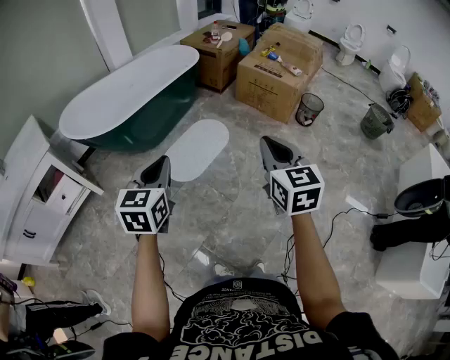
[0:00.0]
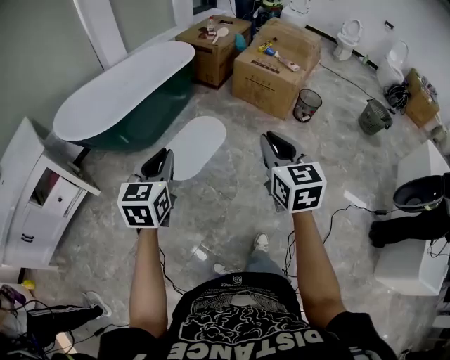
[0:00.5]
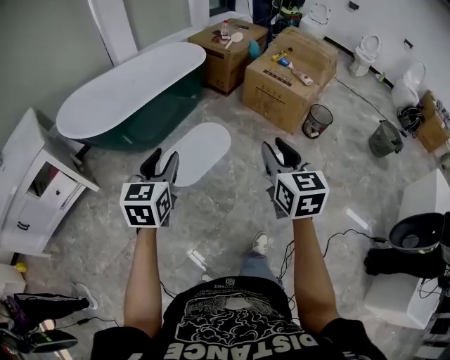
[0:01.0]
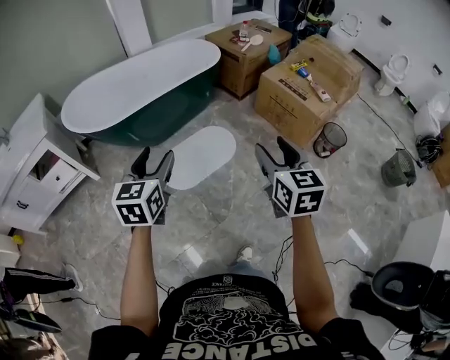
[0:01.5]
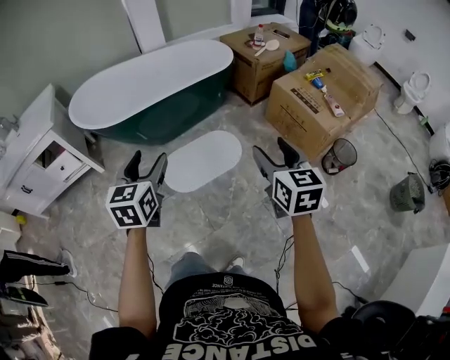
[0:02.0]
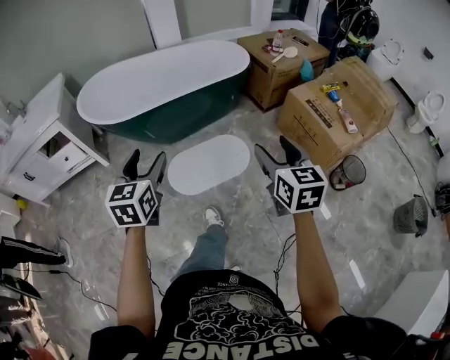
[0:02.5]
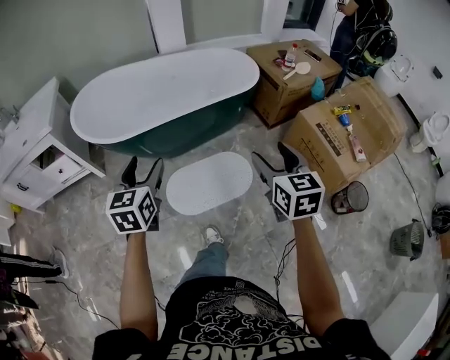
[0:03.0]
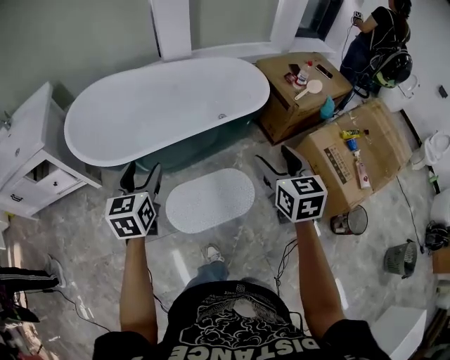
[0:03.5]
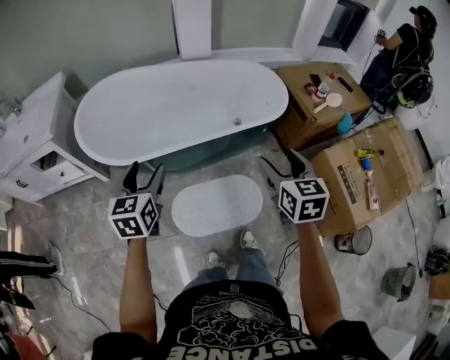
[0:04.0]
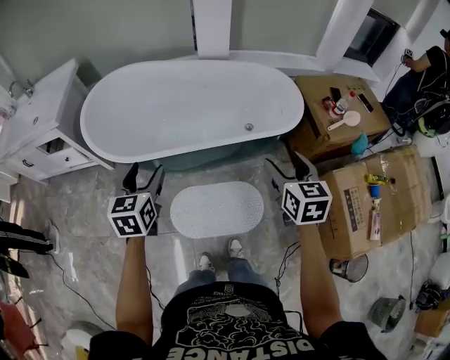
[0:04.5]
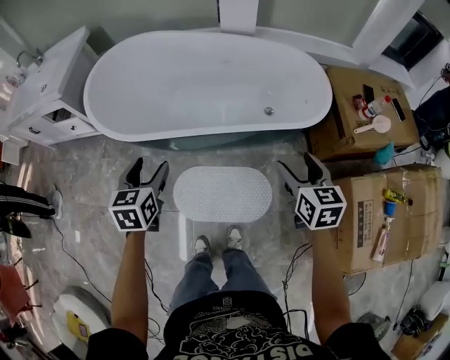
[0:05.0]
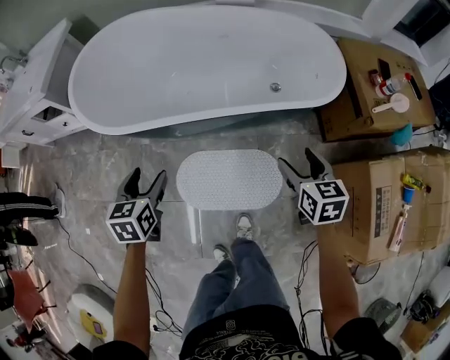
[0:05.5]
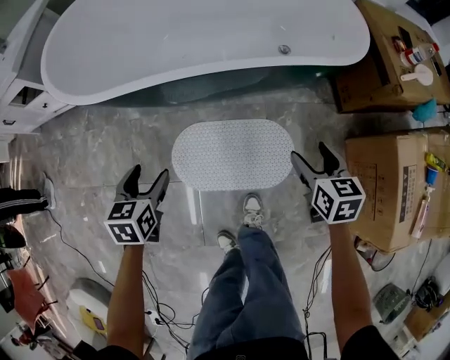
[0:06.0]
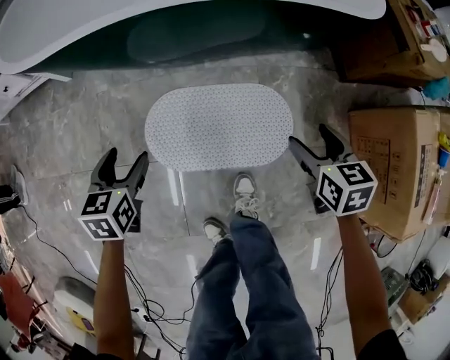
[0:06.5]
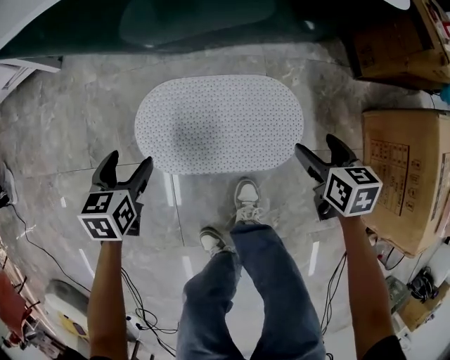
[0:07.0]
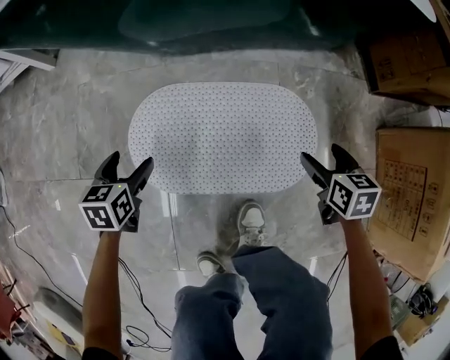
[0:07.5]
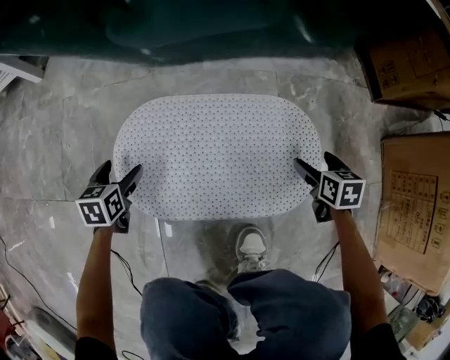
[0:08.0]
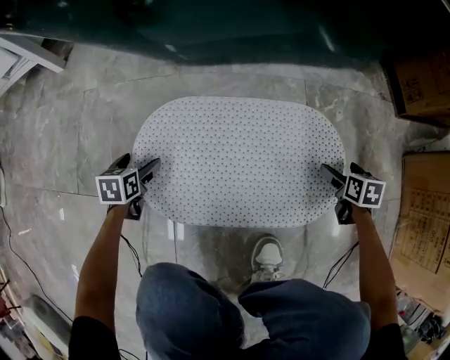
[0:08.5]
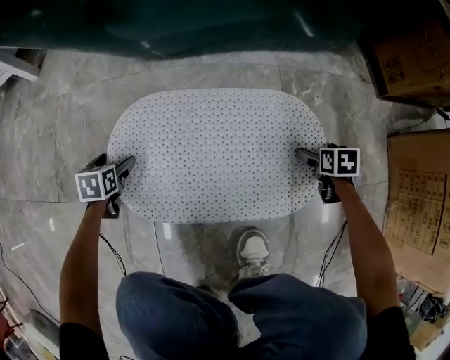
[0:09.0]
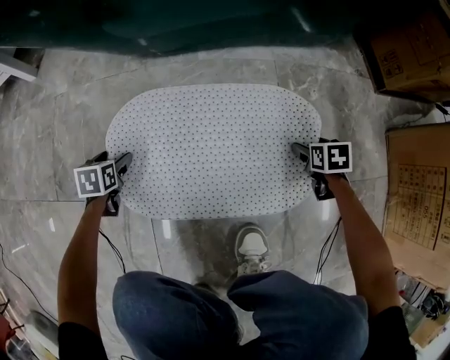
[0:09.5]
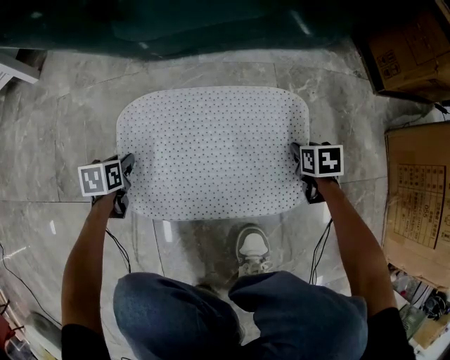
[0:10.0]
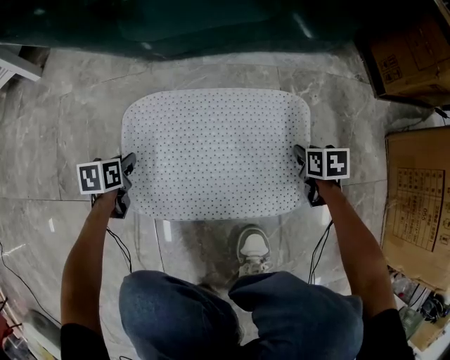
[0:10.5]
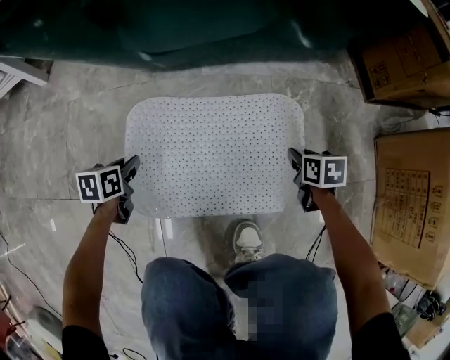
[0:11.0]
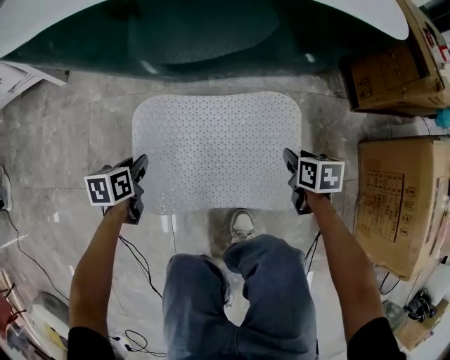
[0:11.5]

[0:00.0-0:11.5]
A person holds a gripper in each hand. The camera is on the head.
0:00.0 to 0:02.0: The left gripper shifts by roughly 25 cm, rotates roughly 30 degrees, and opens; the right gripper moves about 35 cm, rotates some 20 degrees, and opens its fingers.
0:02.0 to 0:04.0: Both grippers travel together forward, approximately 40 cm.
0:04.0 to 0:06.0: The grippers both shift downward by about 35 cm. The right gripper rotates some 20 degrees. The left gripper turns by about 30 degrees.
0:06.0 to 0:07.5: The grippers both shift downward by approximately 40 cm.
0:07.5 to 0:09.5: Both grippers move downward, roughly 20 cm.
0:09.5 to 0:11.5: The two grippers go some 25 cm upward. The right gripper closes up, while the left gripper closes.

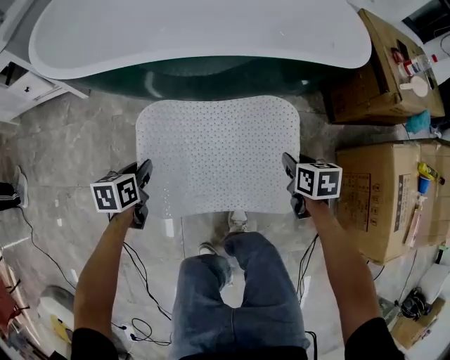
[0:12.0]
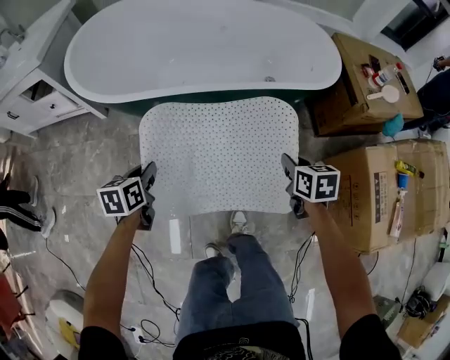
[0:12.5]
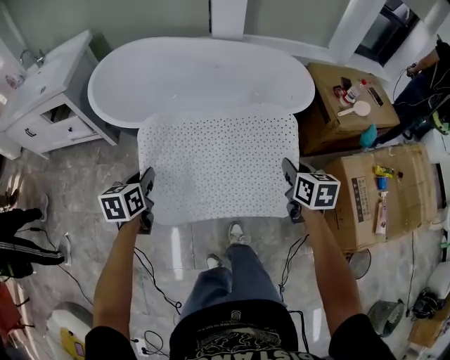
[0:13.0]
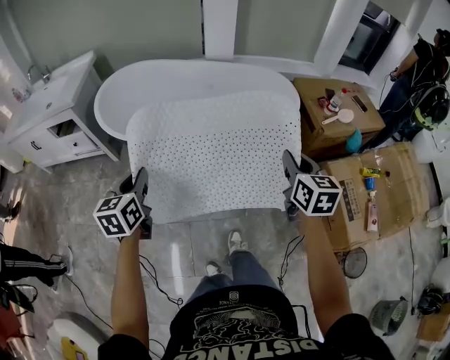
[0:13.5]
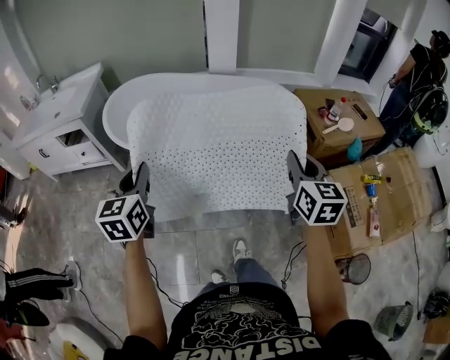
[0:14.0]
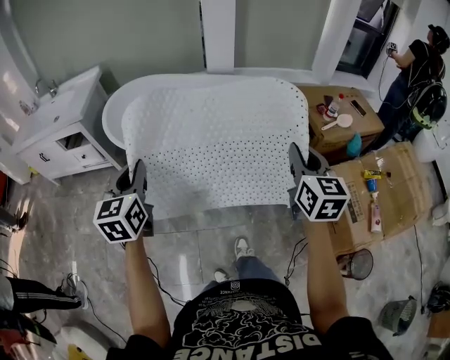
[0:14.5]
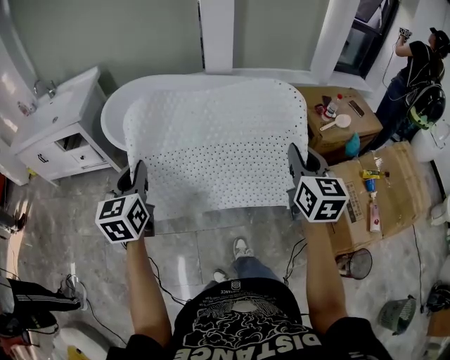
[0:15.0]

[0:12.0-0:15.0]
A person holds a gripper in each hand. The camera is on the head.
0:12.0 to 0:13.5: Both grippers travel together upward, some 50 cm. The left gripper swivels roughly 30 degrees, while the right gripper tilts its fingers approximately 30 degrees upward.
0:13.5 to 0:15.0: Both grippers move upward, some 10 cm.

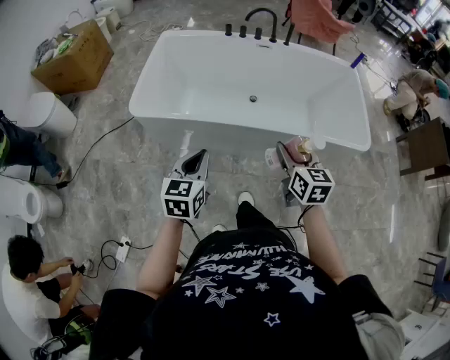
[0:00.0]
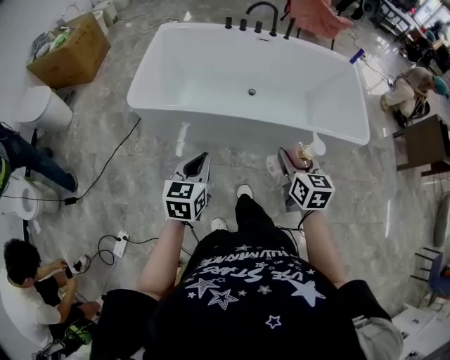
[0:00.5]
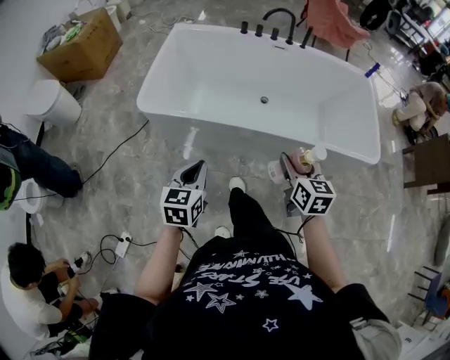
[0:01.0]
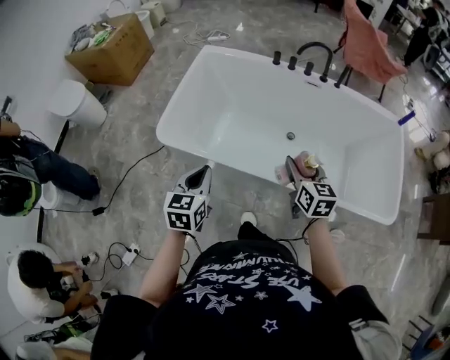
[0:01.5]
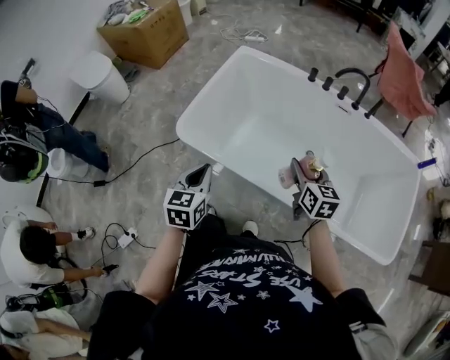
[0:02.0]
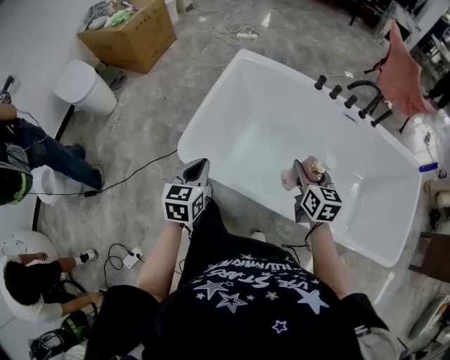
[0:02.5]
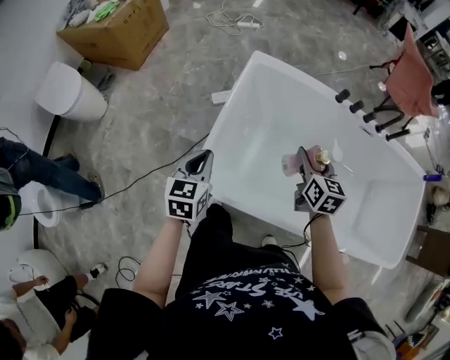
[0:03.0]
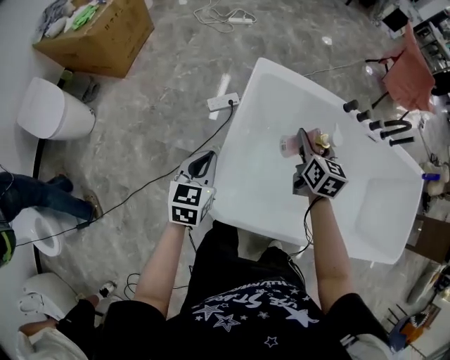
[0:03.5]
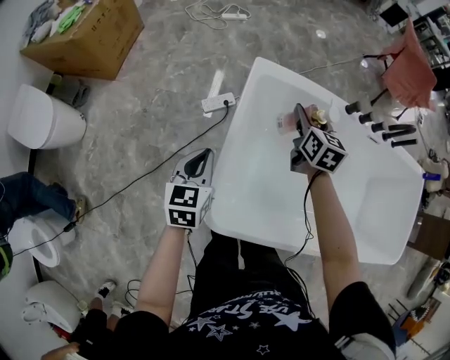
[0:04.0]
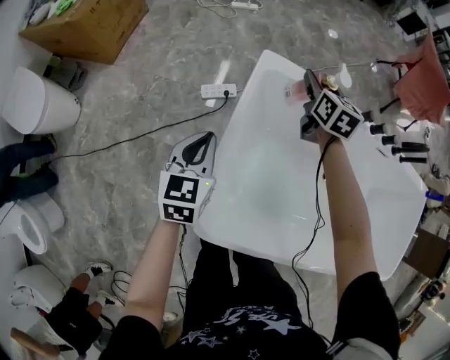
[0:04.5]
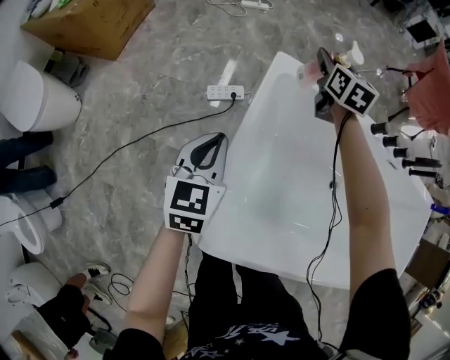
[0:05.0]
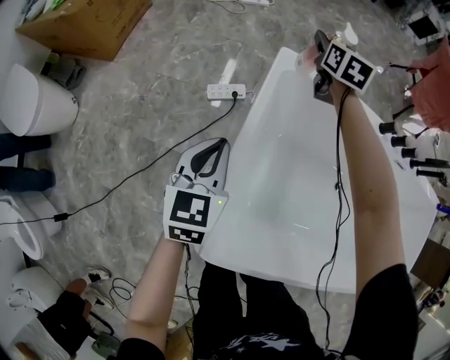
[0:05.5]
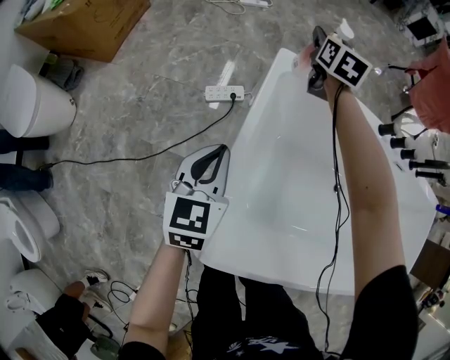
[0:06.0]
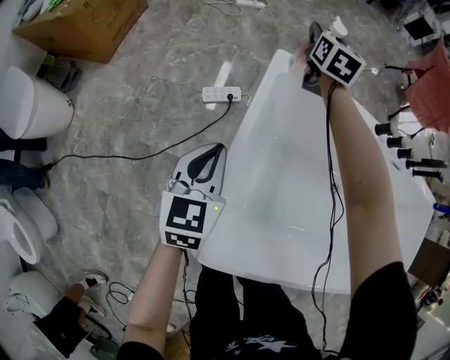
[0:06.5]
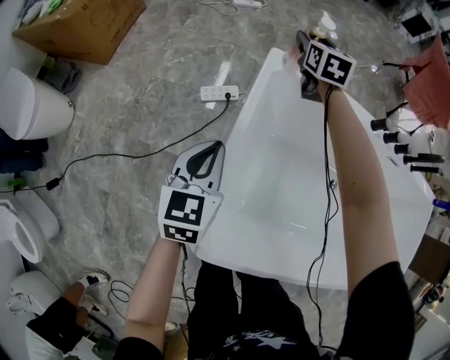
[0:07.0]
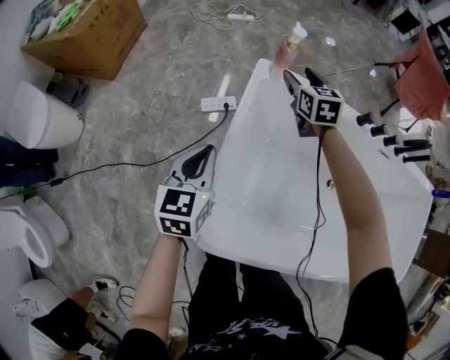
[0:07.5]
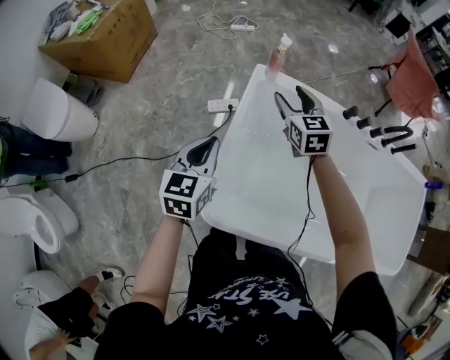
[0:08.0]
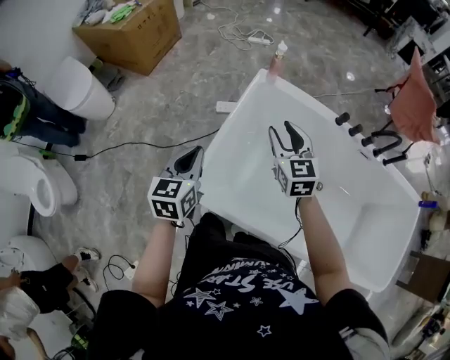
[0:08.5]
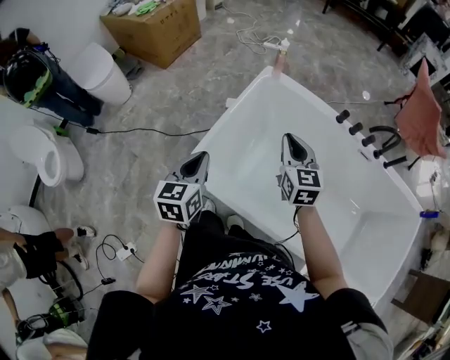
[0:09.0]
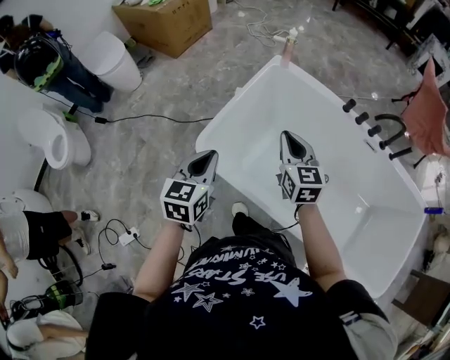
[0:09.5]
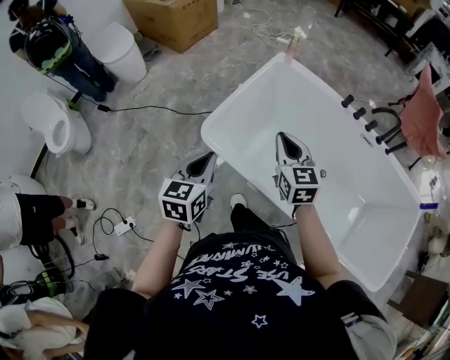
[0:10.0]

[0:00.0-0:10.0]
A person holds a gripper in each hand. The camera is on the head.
0:00.0 to 0:02.0: The left gripper heads forward and to the left, covering some 25 cm, and turns by roughly 20 degrees. Meanwhile the right gripper goes some 35 cm forward.
0:02.0 to 0:04.0: The pair of grippers is taken forward and to the left, roughly 60 cm. The right gripper swivels roughly 20 degrees.
0:04.0 to 0:06.0: The left gripper is displaced downward and forward by approximately 10 cm. Meanwhile the right gripper moves forward, about 25 cm.
0:06.0 to 0:08.0: The right gripper travels backward and upward by some 30 cm, and swivels approximately 20 degrees, while the left gripper is displaced upward and backward by approximately 20 cm.
0:08.0 to 0:10.0: The two grippers travel together, backward, roughly 40 cm. The left gripper turns by approximately 20 degrees; the right gripper closes.

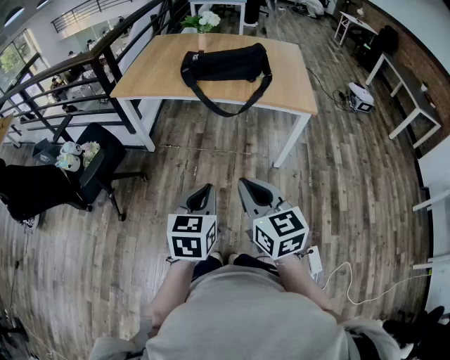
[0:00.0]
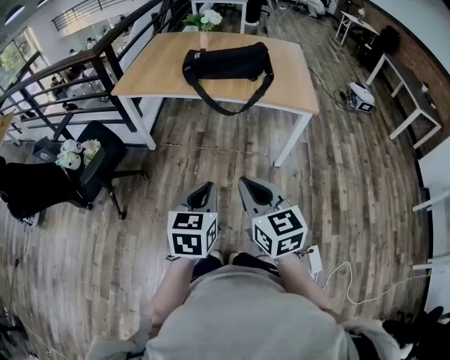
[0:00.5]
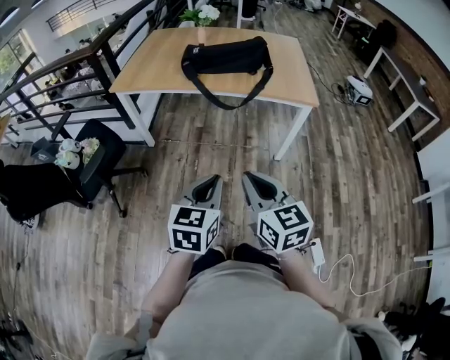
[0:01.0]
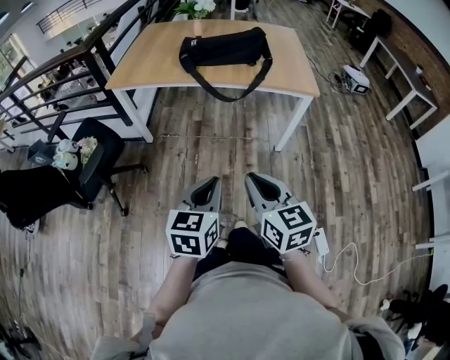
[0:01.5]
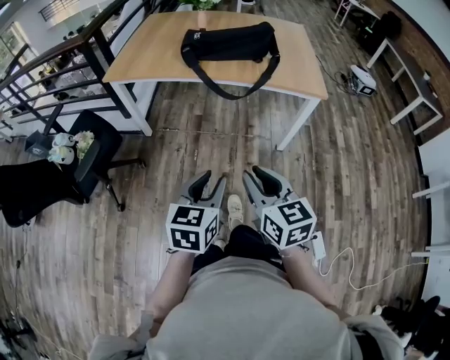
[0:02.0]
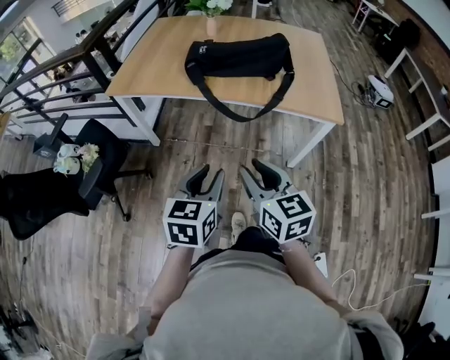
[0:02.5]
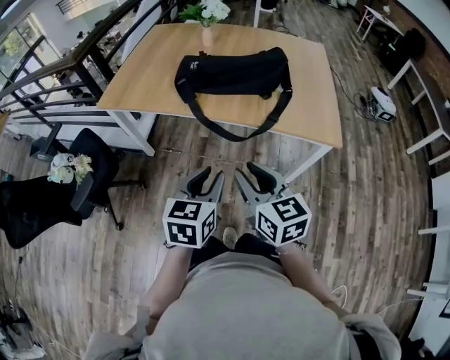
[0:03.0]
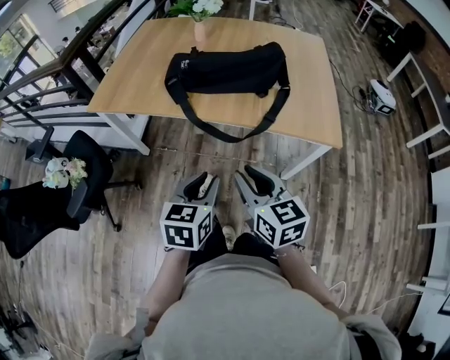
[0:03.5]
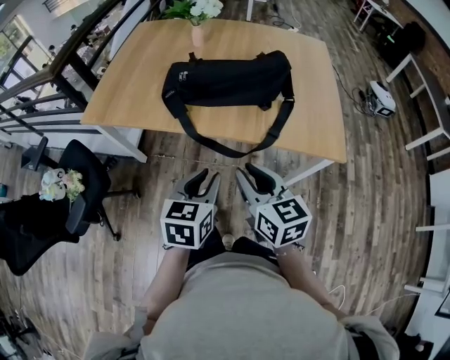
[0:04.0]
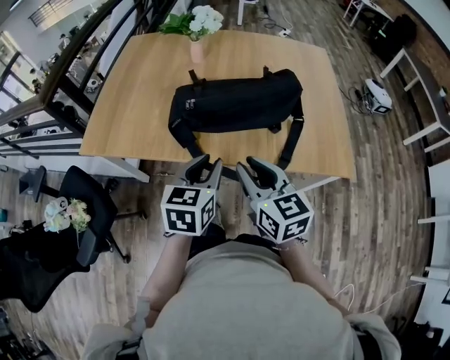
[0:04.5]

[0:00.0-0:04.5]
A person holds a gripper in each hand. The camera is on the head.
0:00.0 to 0:02.0: The left gripper ends up approximately 5 cm from where it was, and opens, while the right gripper goes roughly 5 cm downward.
0:02.0 to 0:04.5: The two grippers travel together, forward, approximately 50 cm.
